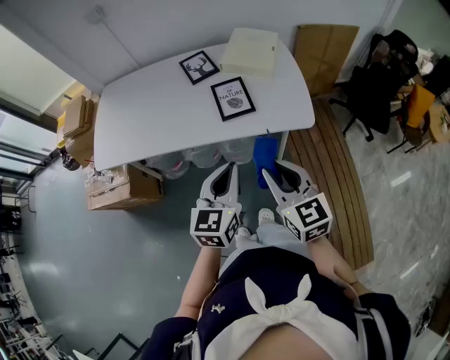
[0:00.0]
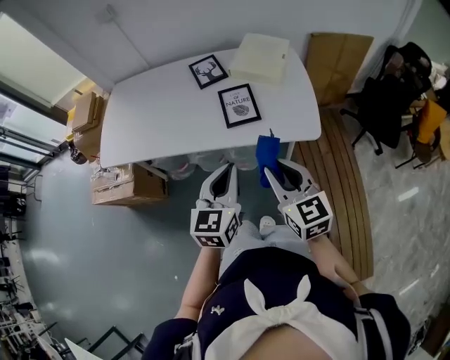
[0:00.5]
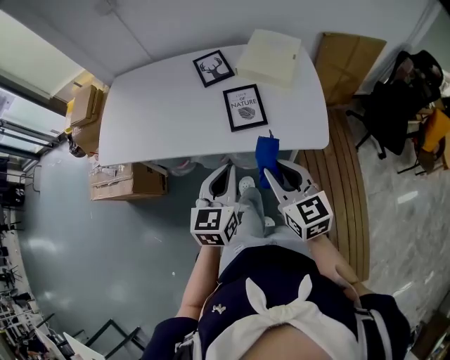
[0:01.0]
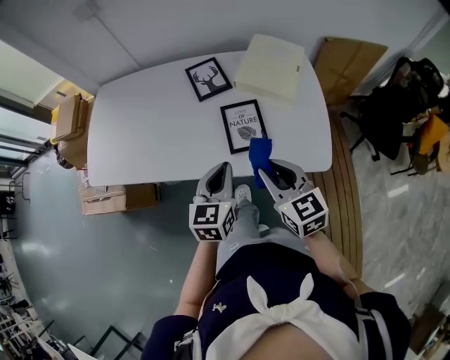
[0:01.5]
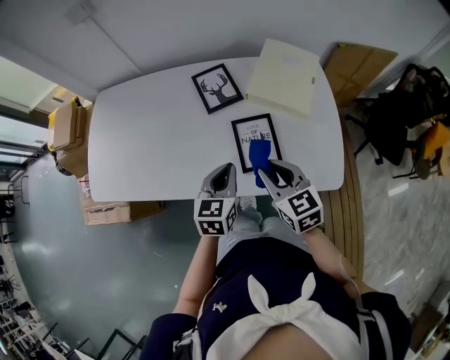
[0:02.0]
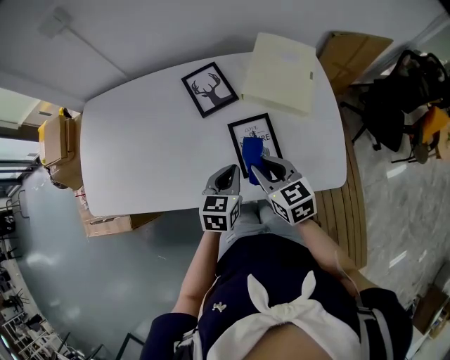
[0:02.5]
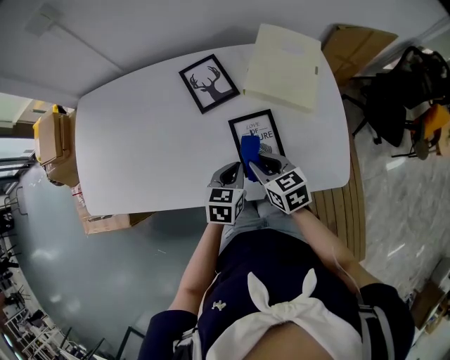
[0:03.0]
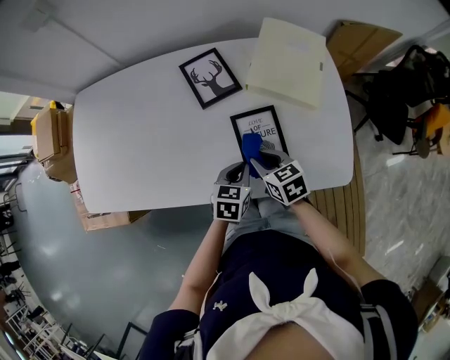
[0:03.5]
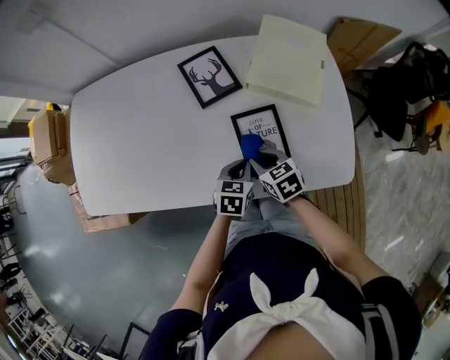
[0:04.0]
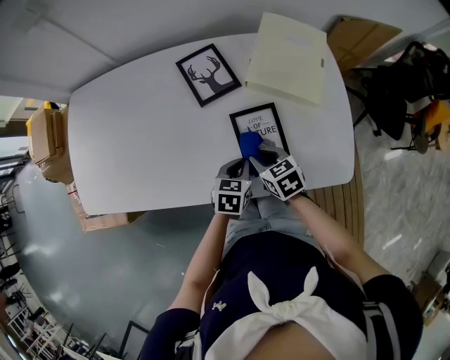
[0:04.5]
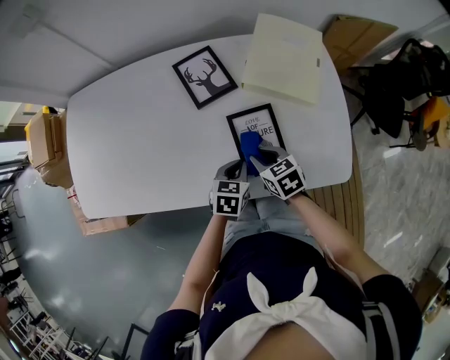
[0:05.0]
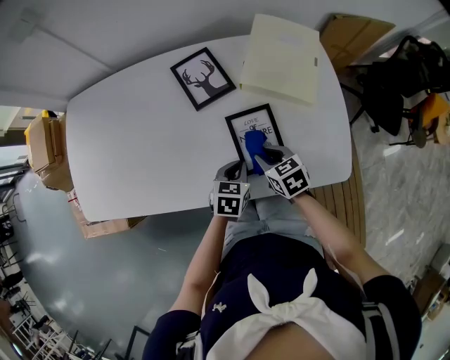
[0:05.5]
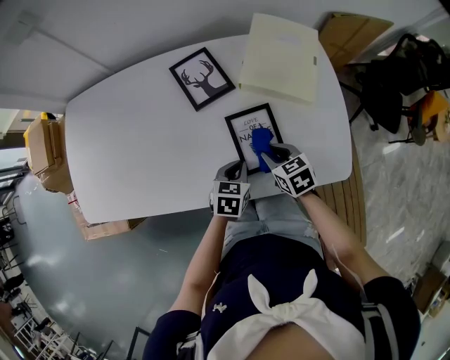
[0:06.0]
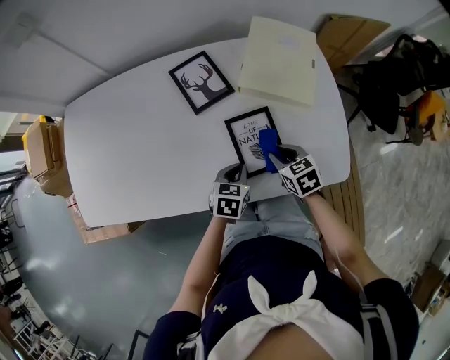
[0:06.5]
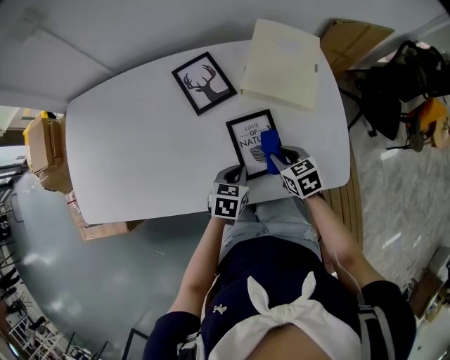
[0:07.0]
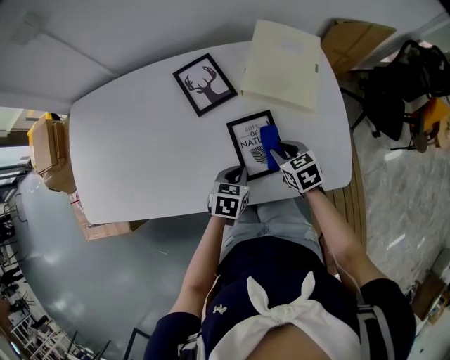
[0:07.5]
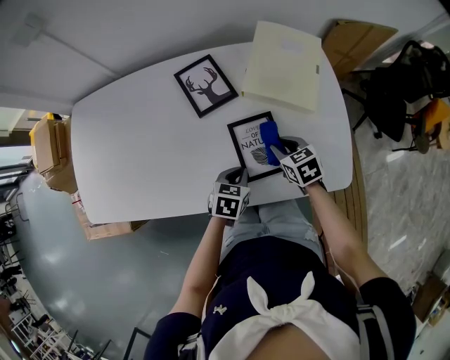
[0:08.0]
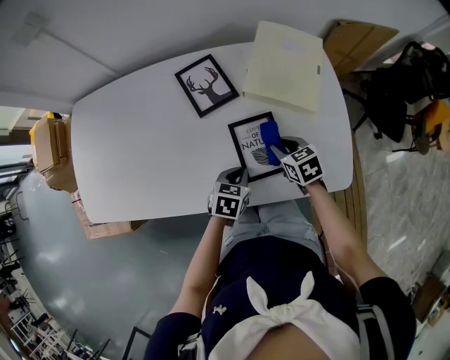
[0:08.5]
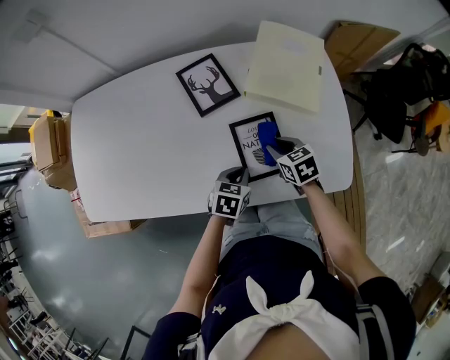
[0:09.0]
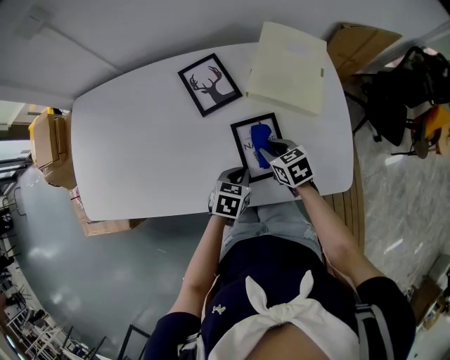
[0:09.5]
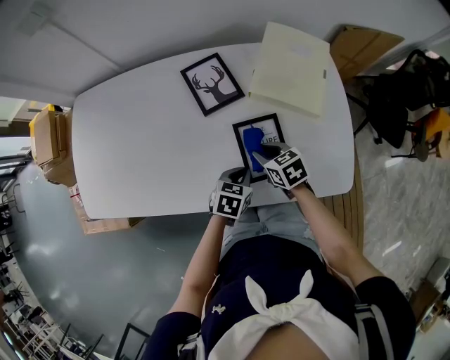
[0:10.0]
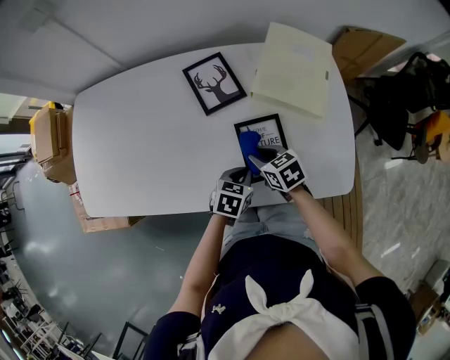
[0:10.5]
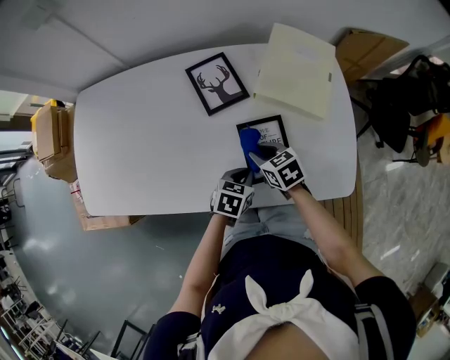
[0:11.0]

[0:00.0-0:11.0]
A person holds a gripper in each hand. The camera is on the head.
0:00.0 to 0:02.0: The right gripper moves forward, some 30 cm; the left gripper is displaced forward and downward by about 30 cm.
0:02.0 to 0:03.5: The right gripper travels downward and forward by some 15 cm, and turns by roughly 20 degrees, while the left gripper moves downward, roughly 15 cm.
0:03.5 to 0:05.5: There are only small adjustments of the grippers.
0:05.5 to 0:07.5: The right gripper goes some 5 cm to the right.
0:07.5 to 0:09.0: There are only small adjustments of the grippers.
0:09.0 to 0:11.0: The right gripper goes some 10 cm to the left.

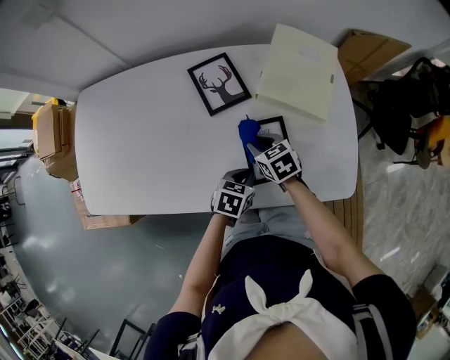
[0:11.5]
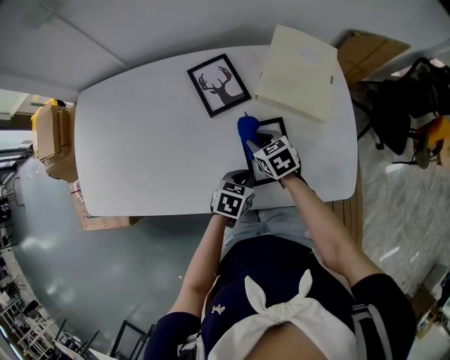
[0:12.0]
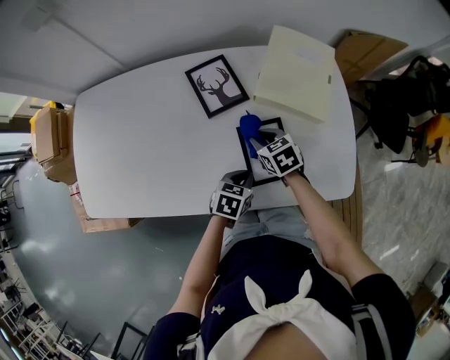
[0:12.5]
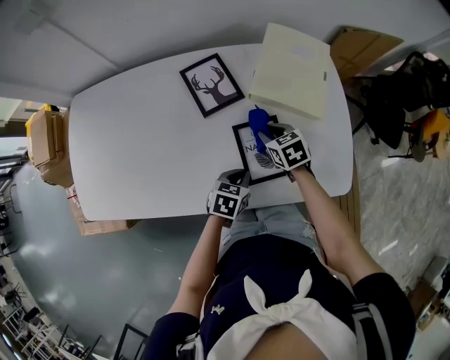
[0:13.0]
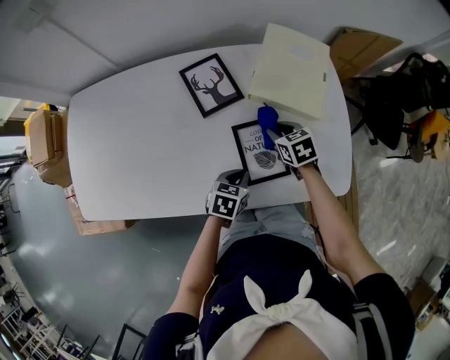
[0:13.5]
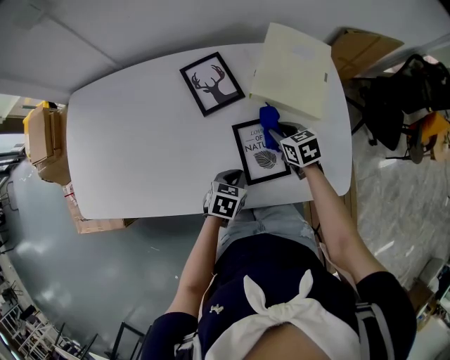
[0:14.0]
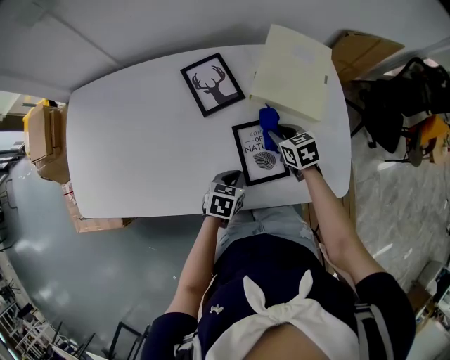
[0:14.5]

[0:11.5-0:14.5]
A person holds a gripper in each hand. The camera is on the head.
0:11.5 to 0:13.0: The right gripper goes some 5 cm to the right.
0:13.0 to 0:14.5: The grippers make only small movements.

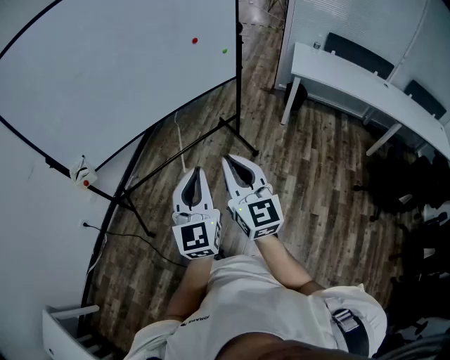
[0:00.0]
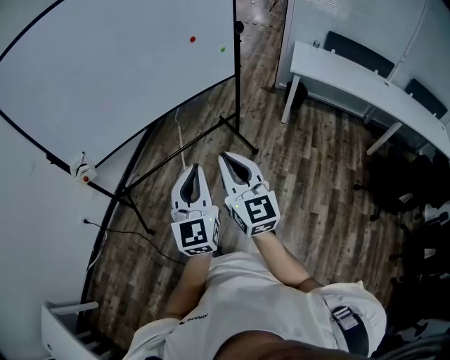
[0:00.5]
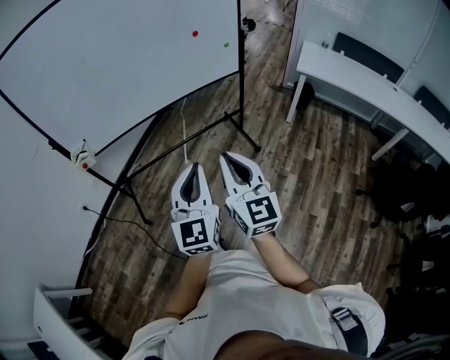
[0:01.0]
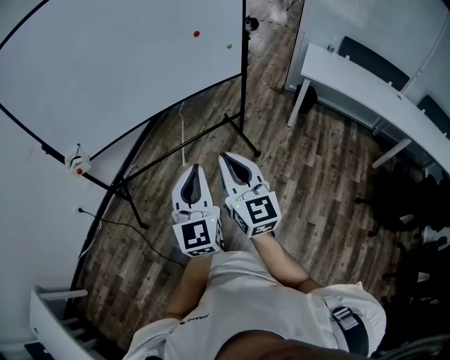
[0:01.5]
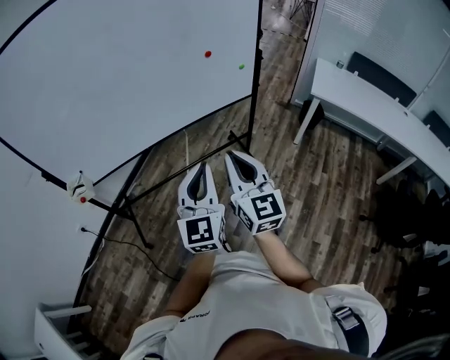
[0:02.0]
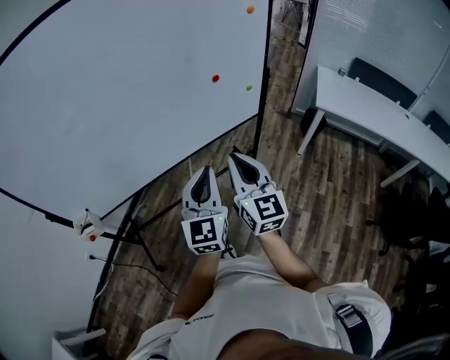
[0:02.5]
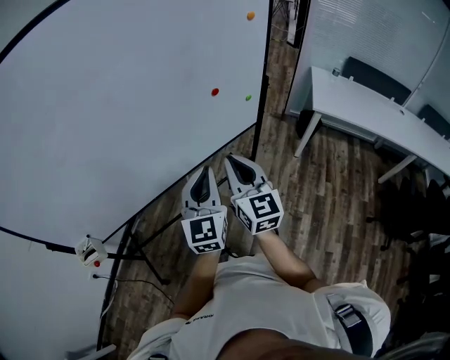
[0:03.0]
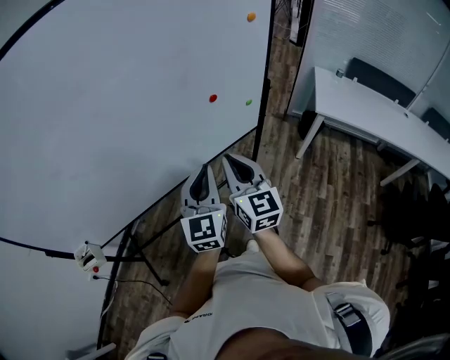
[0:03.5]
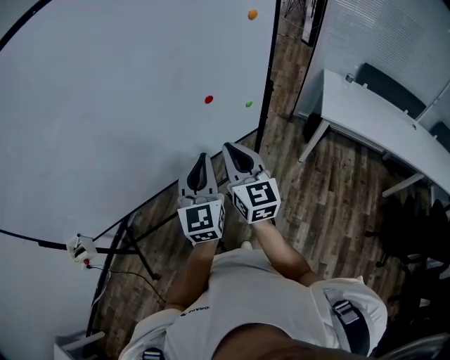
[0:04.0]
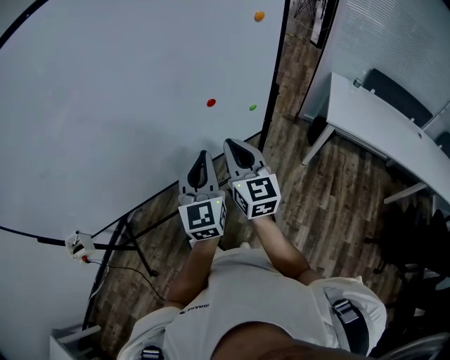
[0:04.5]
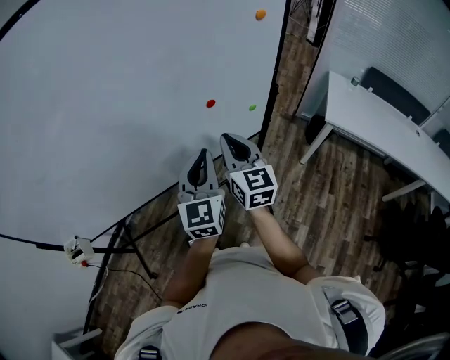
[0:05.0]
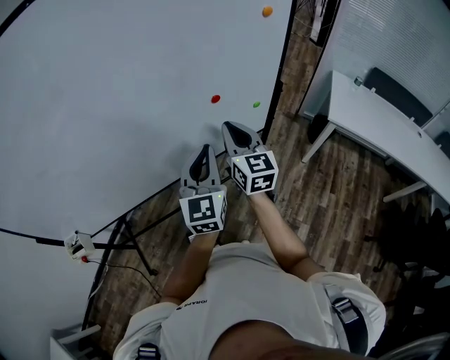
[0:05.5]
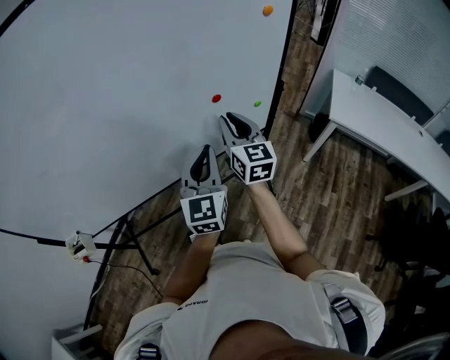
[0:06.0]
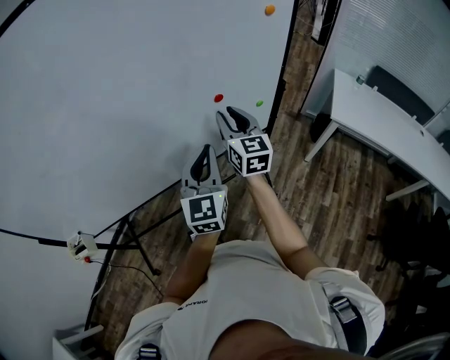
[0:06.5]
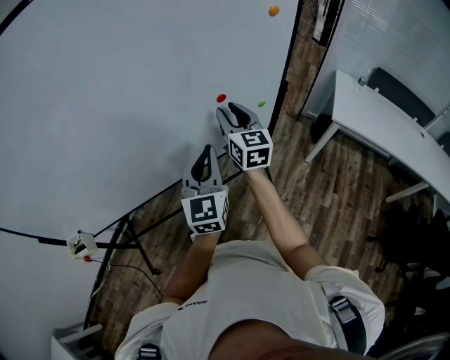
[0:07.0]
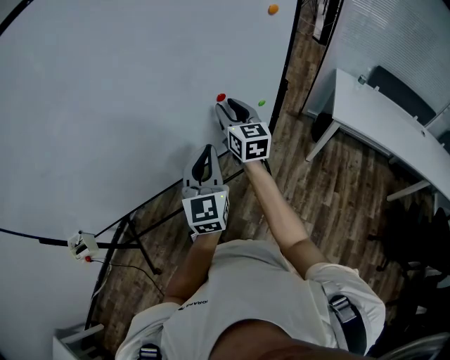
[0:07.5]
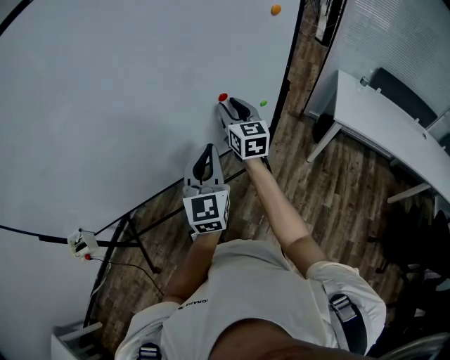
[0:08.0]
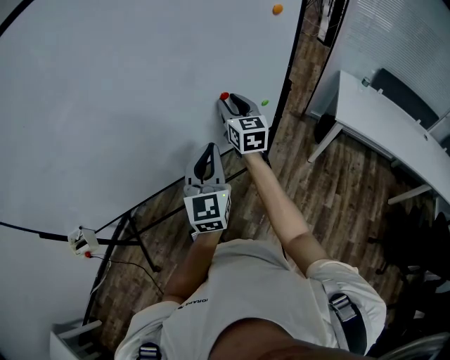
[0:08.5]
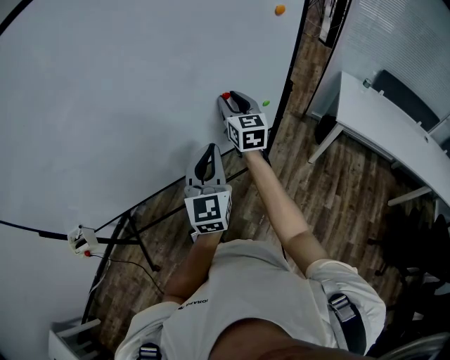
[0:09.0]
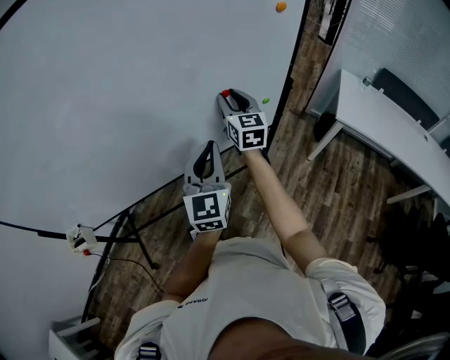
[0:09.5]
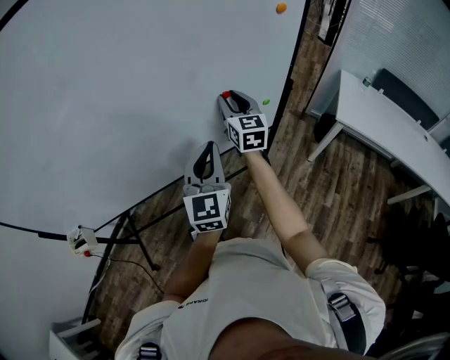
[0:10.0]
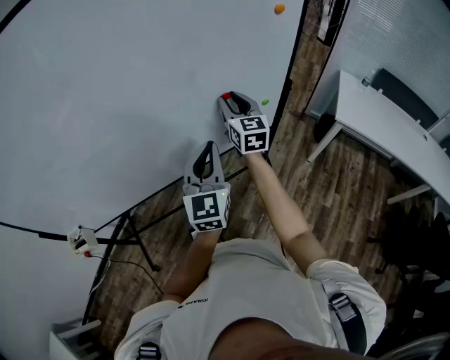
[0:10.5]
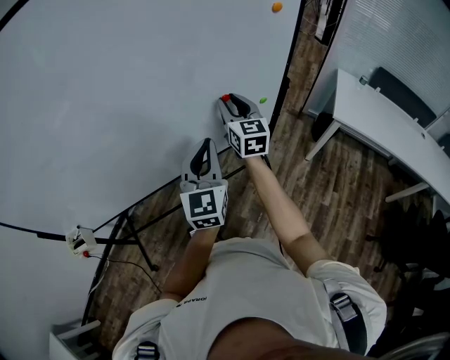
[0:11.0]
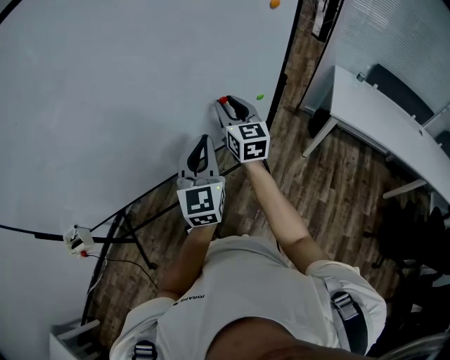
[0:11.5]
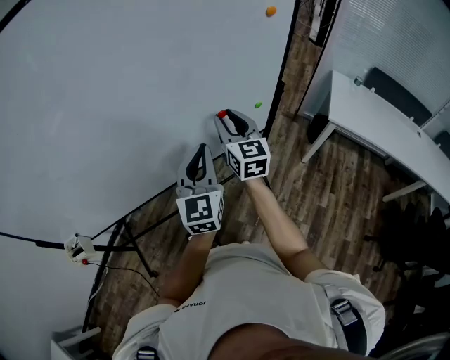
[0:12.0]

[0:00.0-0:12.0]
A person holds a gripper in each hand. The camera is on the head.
0:00.0 to 0:02.0: The grippers both shift forward by some 15 cm.
0:02.0 to 0:04.0: The grippers both shift forward by some 30 cm.
0:04.0 to 0:06.0: The right gripper goes approximately 10 cm forward.
0:06.0 to 0:08.0: The right gripper is displaced forward by some 5 cm.
0:08.0 to 0:10.0: There are only small adjustments of the grippers.
0:10.0 to 0:12.0: The right gripper heads backward, covering about 5 cm.

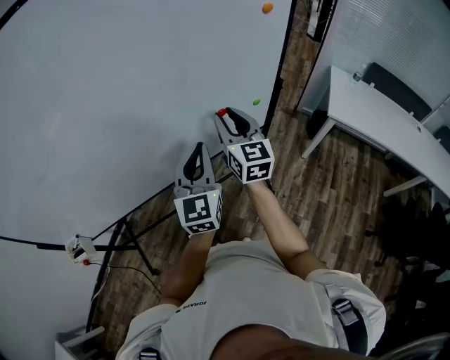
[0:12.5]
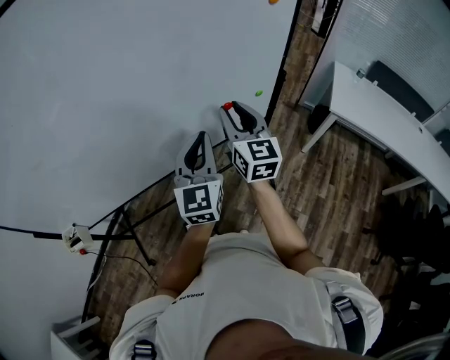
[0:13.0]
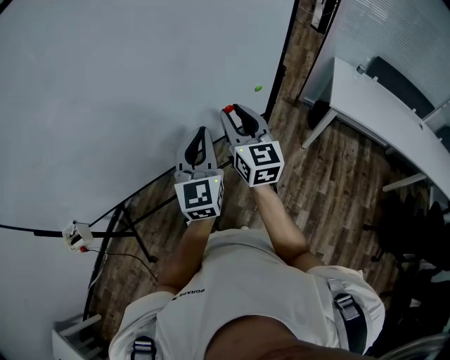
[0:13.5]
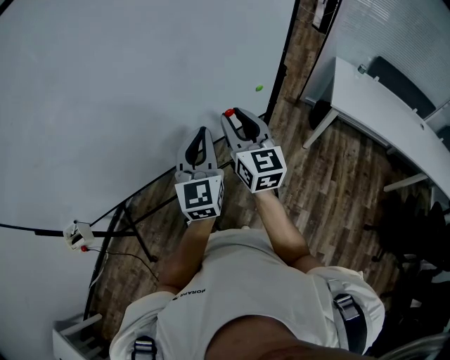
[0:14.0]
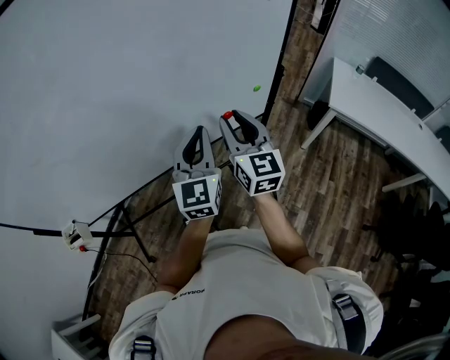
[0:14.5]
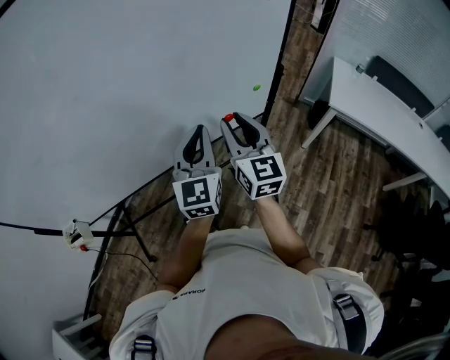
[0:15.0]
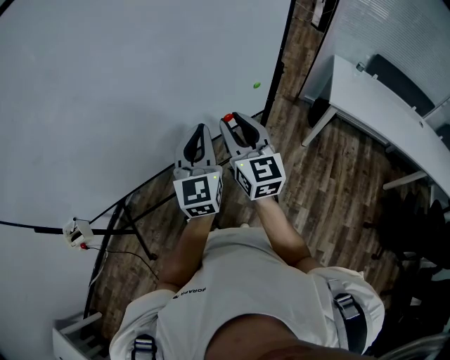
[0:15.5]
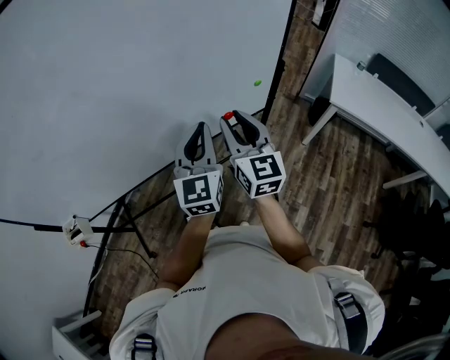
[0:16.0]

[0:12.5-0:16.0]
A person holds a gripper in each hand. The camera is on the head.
0:12.5 to 0:14.5: The right gripper moves backward, about 5 cm.
0:14.5 to 0:16.0: There are only small adjustments of the grippers.
